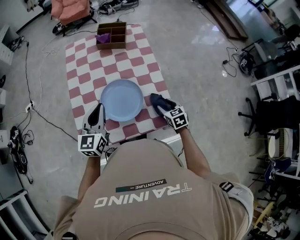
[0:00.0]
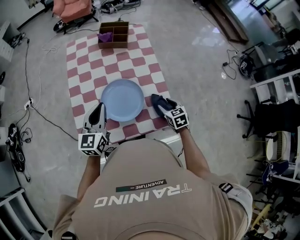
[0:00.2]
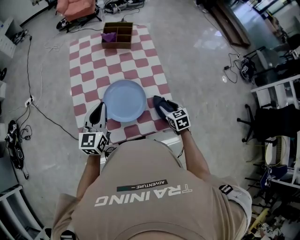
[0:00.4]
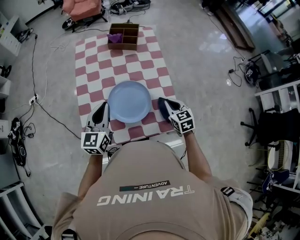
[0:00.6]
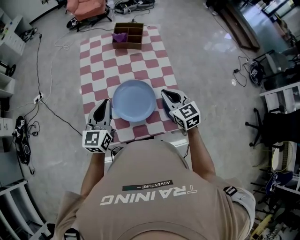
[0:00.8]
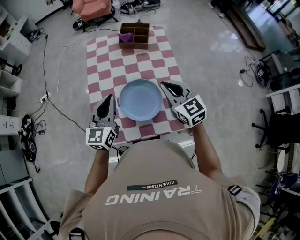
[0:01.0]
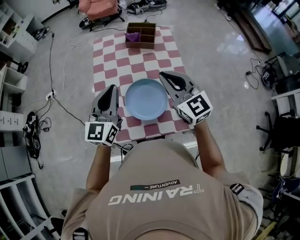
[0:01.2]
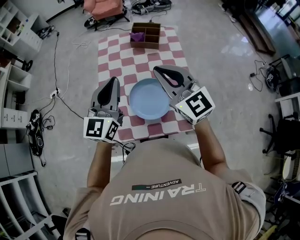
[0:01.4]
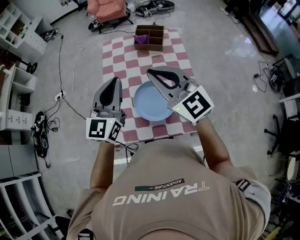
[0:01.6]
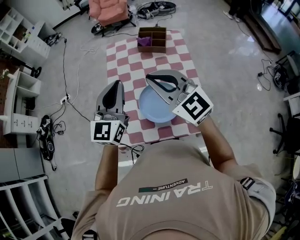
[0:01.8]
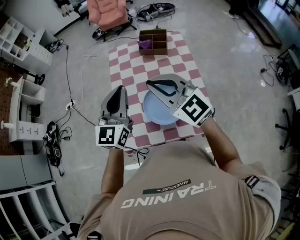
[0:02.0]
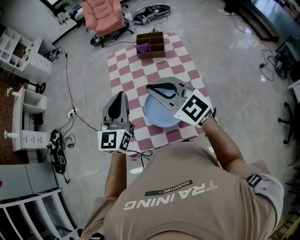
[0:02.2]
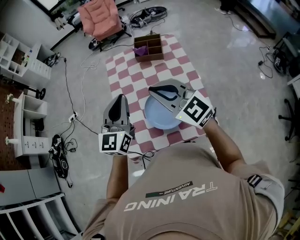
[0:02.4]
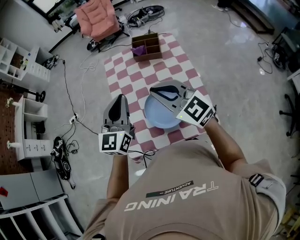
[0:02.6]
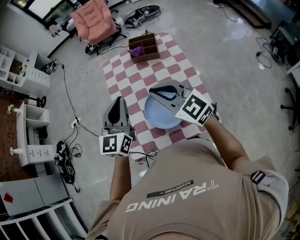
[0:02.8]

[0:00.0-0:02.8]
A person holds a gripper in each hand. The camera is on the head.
0:00.0 to 0:01.4: The right gripper is displaced upward and to the left by roughly 40 cm, tips its fingers upward by some 50 degrees, and closes its fingers. Meanwhile the left gripper shifts approximately 15 cm upward.
0:01.4 to 0:02.8: The right gripper moves some 5 cm.

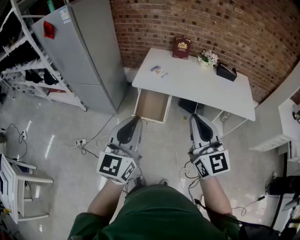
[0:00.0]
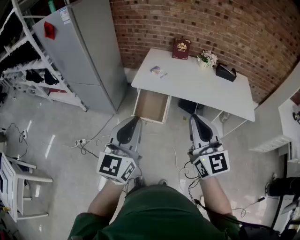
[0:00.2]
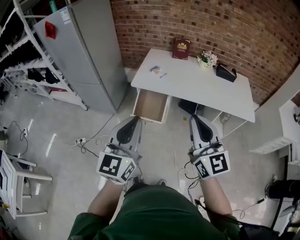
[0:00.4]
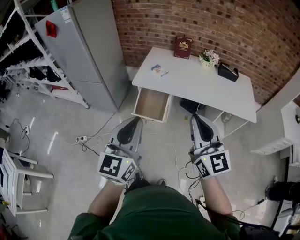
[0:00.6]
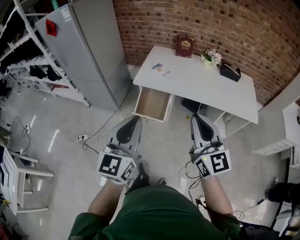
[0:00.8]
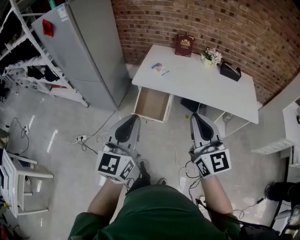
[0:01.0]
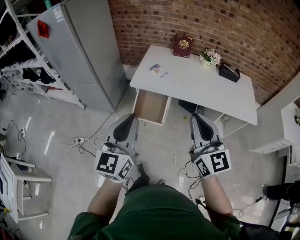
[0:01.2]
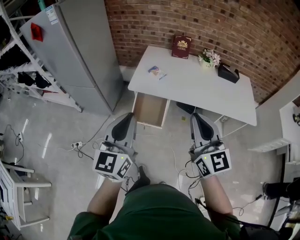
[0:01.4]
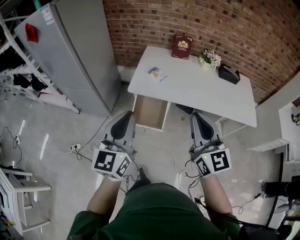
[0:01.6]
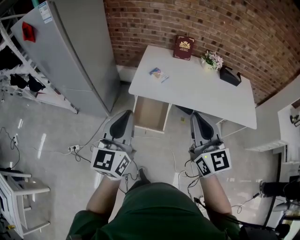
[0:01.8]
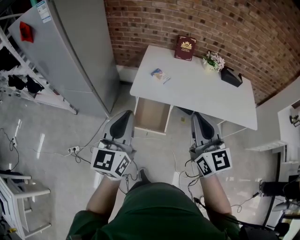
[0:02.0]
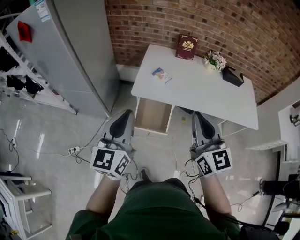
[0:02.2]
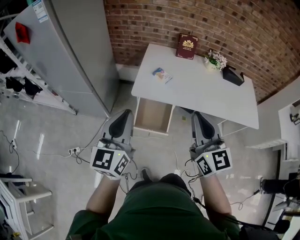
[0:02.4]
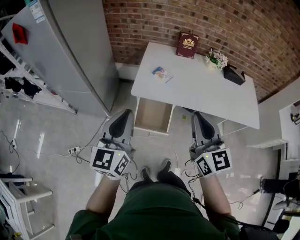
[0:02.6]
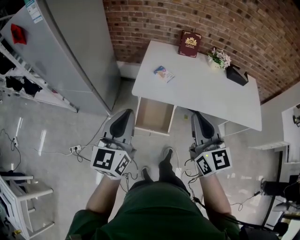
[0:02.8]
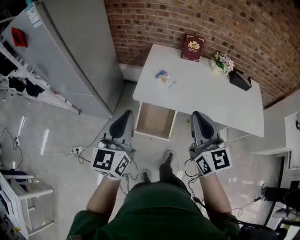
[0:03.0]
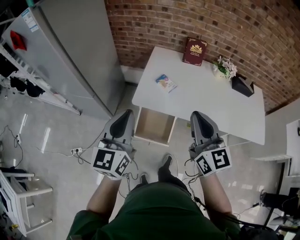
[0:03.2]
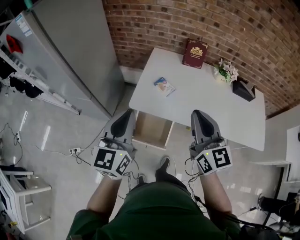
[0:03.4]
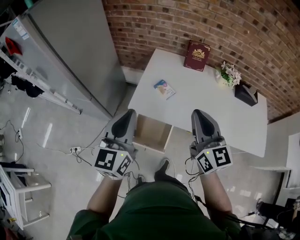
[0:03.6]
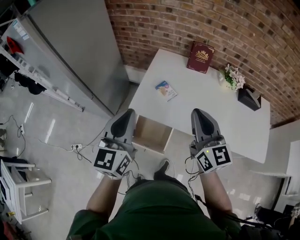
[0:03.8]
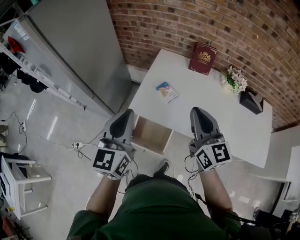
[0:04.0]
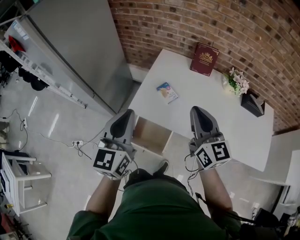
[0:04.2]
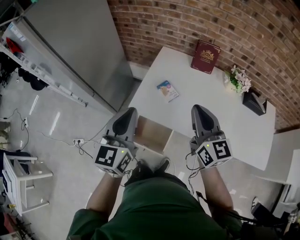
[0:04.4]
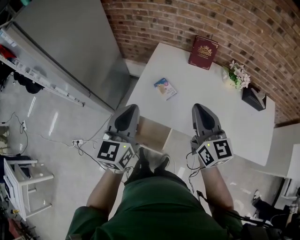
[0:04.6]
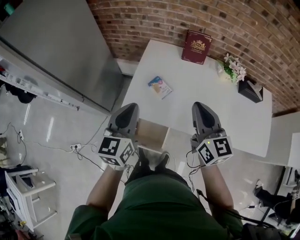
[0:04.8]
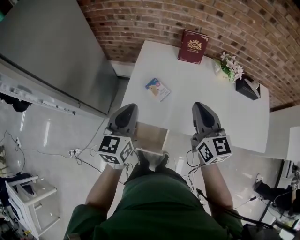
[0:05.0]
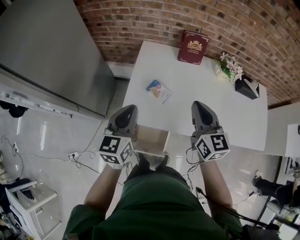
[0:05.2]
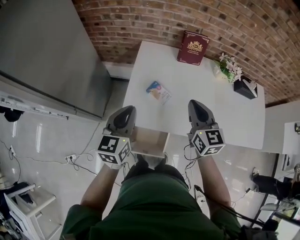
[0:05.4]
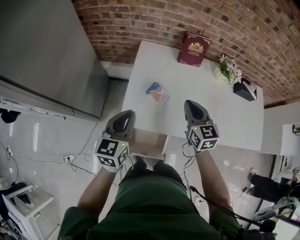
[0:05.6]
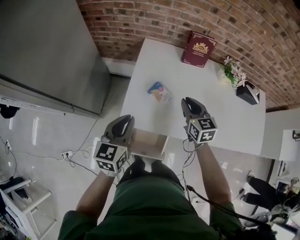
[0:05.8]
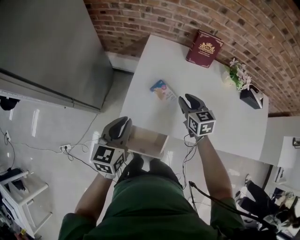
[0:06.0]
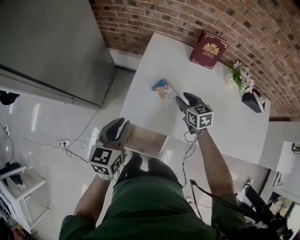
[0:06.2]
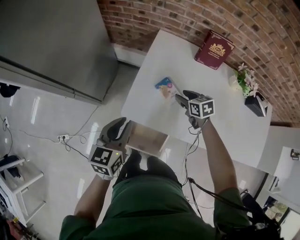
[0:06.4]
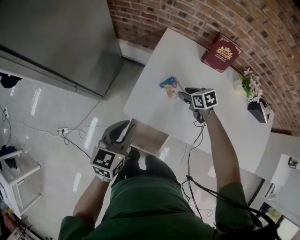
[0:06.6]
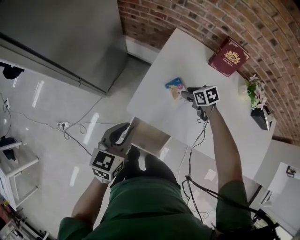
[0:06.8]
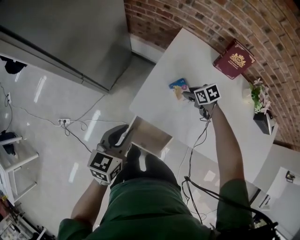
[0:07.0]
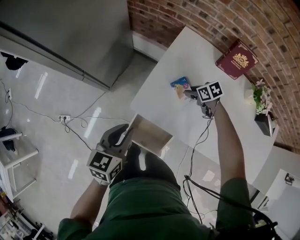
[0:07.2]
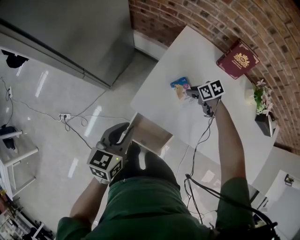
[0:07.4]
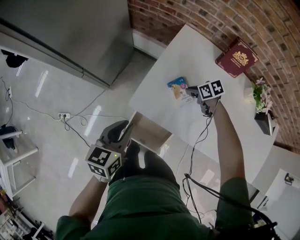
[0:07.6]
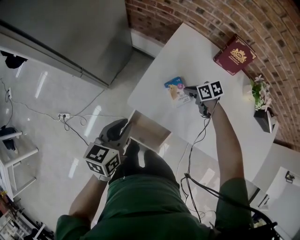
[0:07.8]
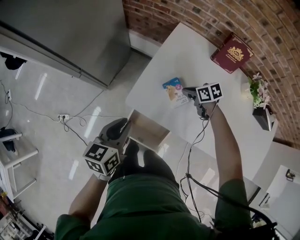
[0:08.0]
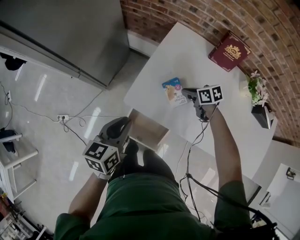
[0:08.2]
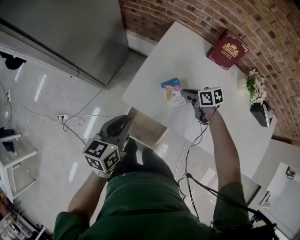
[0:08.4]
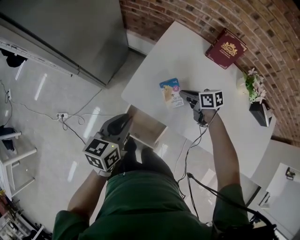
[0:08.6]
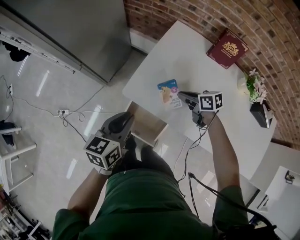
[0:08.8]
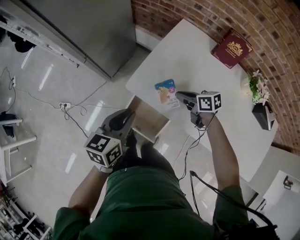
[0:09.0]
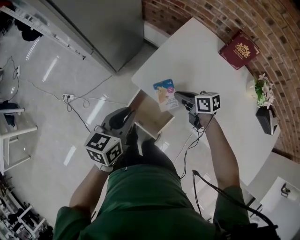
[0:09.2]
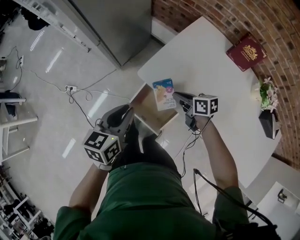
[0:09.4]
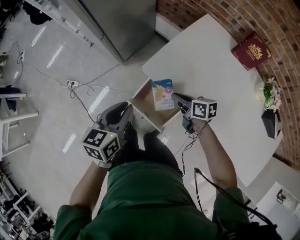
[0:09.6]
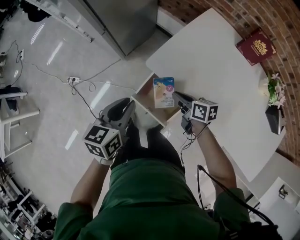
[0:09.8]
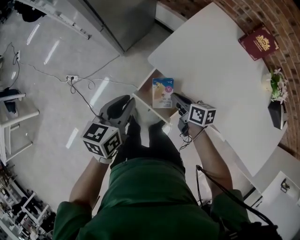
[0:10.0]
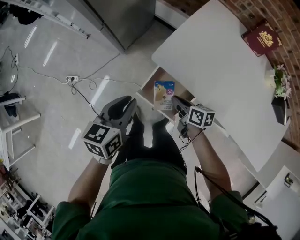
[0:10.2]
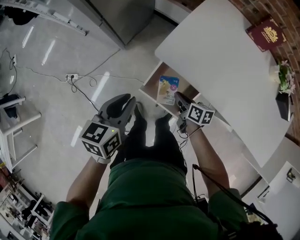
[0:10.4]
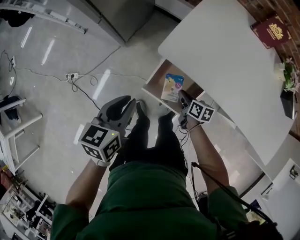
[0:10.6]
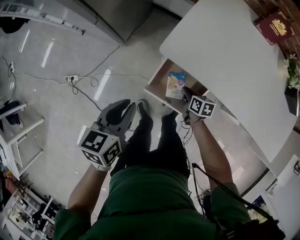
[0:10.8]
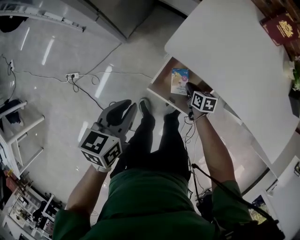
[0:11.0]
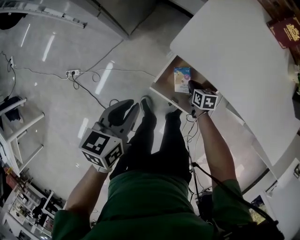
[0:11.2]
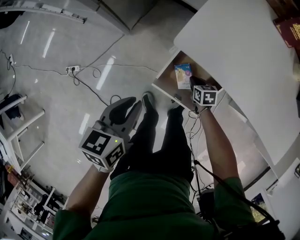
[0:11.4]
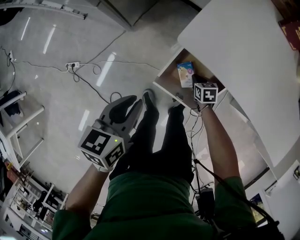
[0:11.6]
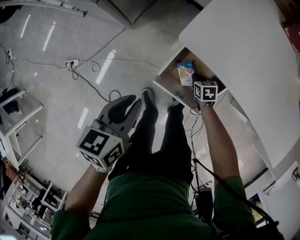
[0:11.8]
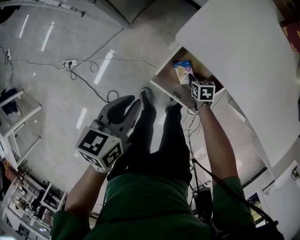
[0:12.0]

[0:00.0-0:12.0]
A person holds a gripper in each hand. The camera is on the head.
0:00.0 to 0:01.6: The two grippers go roughly 15 cm forward.
0:01.6 to 0:03.0: The right gripper travels forward by some 15 cm; the left gripper is displaced forward and to the left by approximately 15 cm.
0:03.0 to 0:04.4: The grippers both shift forward and to the right by approximately 20 cm.
0:04.4 to 0:06.0: The grippers both shift downward and forward by about 25 cm. The right gripper points its fingers about 30 degrees further downward, and opens, while the left gripper changes its angle by approximately 20 degrees.
0:06.0 to 0:07.6: The right gripper is displaced downward by about 15 cm, and swivels some 50 degrees, while the left gripper shifts by about 10 cm.
0:07.6 to 0:09.0: The left gripper moves backward, approximately 5 cm, while the right gripper shifts some 15 cm backward, upward and to the left, and changes its angle by some 20 degrees.
0:09.0 to 0:10.4: The right gripper is displaced to the left, downward and backward by approximately 20 cm, and rotates roughly 30 degrees, while the left gripper goes approximately 15 cm to the left and downward.
0:10.4 to 0:12.0: The right gripper travels downward by about 20 cm, changes its angle by some 40 degrees, and opens, while the left gripper is displaced downward by approximately 10 cm.

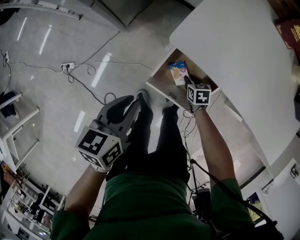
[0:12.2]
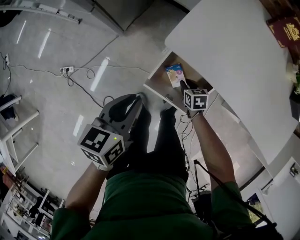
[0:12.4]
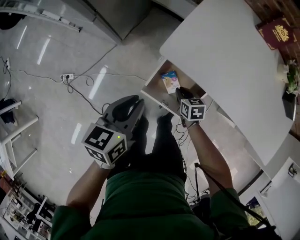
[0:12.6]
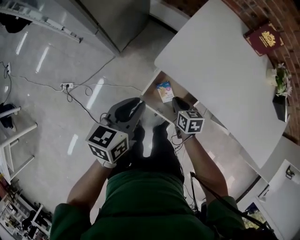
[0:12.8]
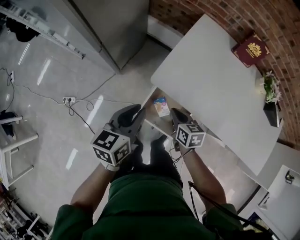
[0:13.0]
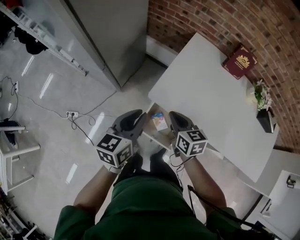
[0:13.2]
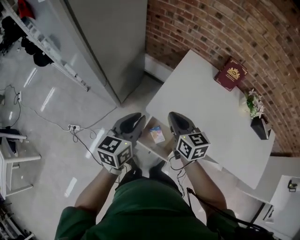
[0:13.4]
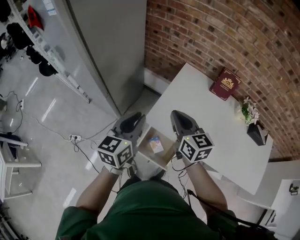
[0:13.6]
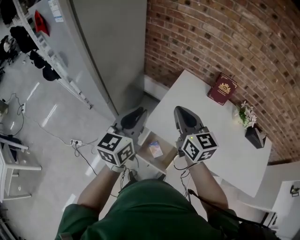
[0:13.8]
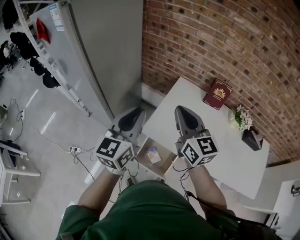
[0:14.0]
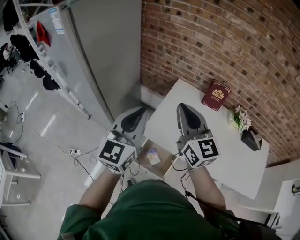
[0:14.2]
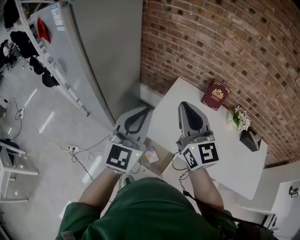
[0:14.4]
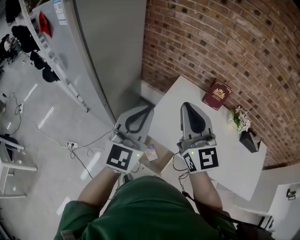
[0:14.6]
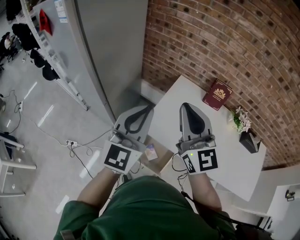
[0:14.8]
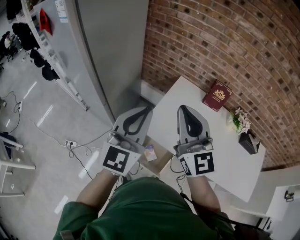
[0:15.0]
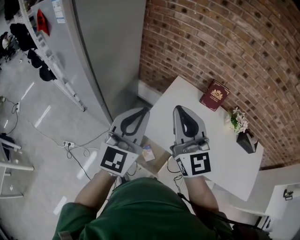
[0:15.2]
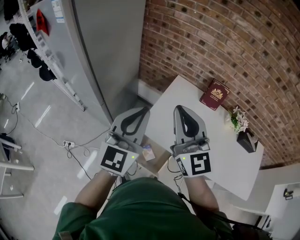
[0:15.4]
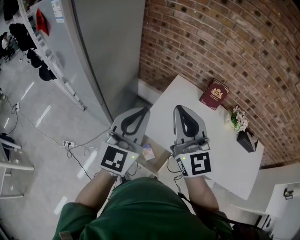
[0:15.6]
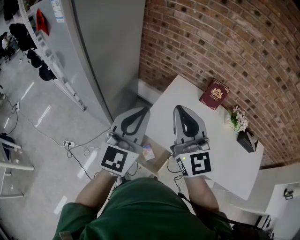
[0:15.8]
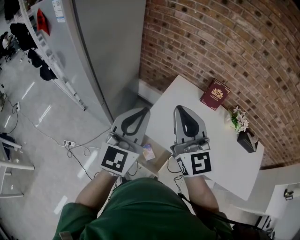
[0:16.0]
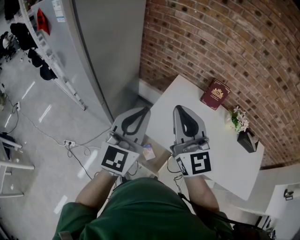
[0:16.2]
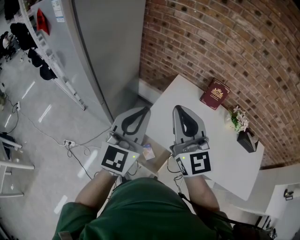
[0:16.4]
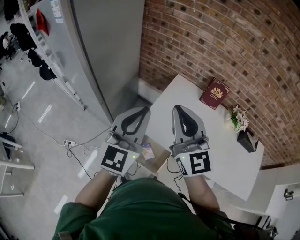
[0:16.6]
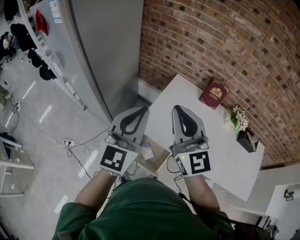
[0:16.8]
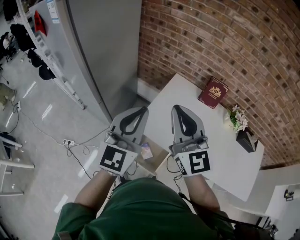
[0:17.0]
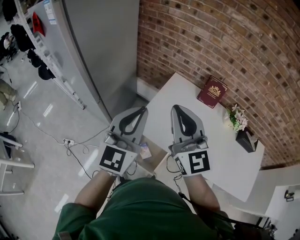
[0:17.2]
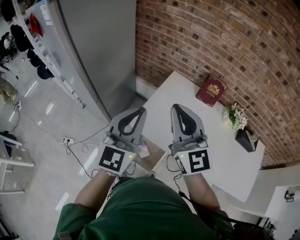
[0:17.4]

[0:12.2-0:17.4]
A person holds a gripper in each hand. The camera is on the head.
0:12.2 to 0:14.0: The left gripper shifts approximately 40 cm upward, and angles its fingers upward, by about 40 degrees; the right gripper moves upward, some 70 cm, points its fingers about 60 degrees further upward, and closes up.
0:14.0 to 0:15.6: The right gripper is displaced upward by roughly 5 cm, and swivels some 20 degrees; the left gripper moves about 5 cm.
0:15.6 to 0:17.4: The grippers both shift to the right by about 5 cm.

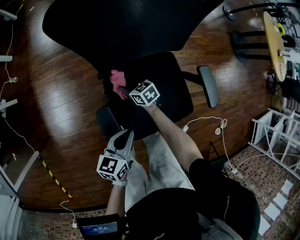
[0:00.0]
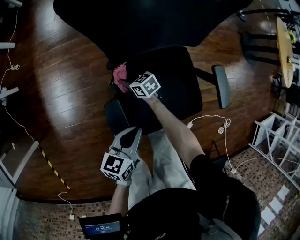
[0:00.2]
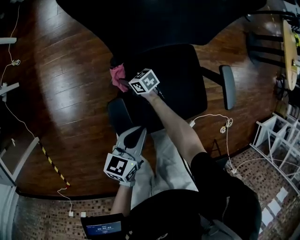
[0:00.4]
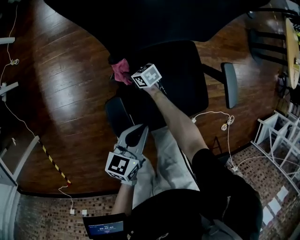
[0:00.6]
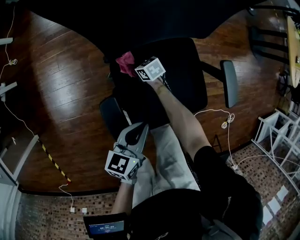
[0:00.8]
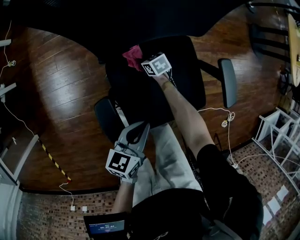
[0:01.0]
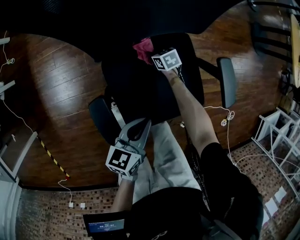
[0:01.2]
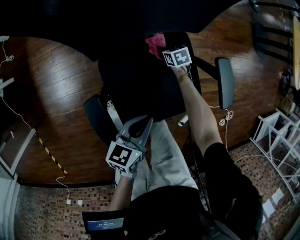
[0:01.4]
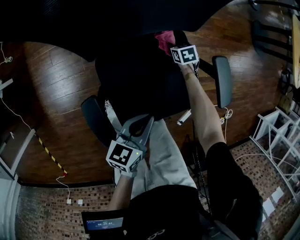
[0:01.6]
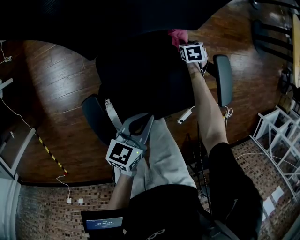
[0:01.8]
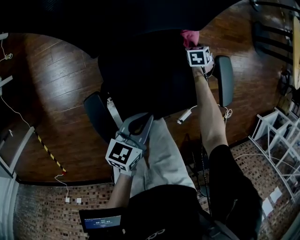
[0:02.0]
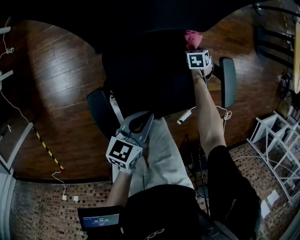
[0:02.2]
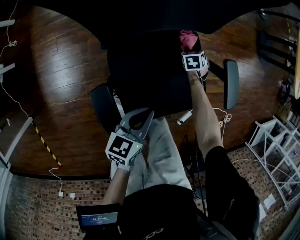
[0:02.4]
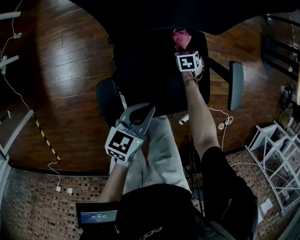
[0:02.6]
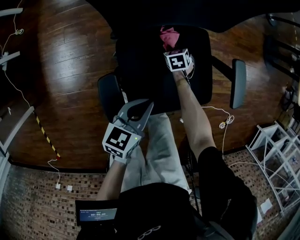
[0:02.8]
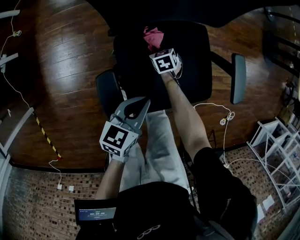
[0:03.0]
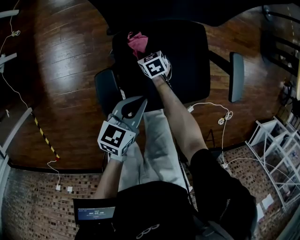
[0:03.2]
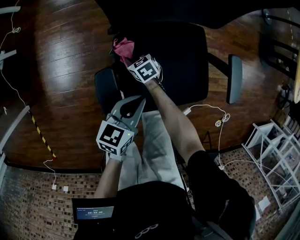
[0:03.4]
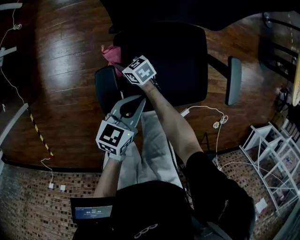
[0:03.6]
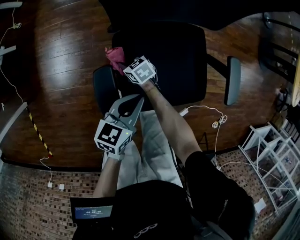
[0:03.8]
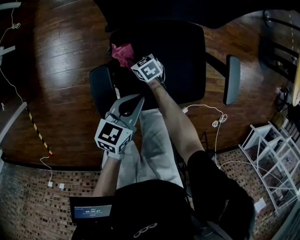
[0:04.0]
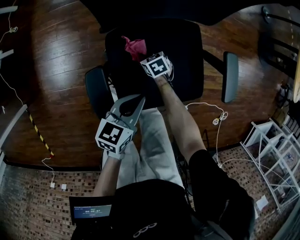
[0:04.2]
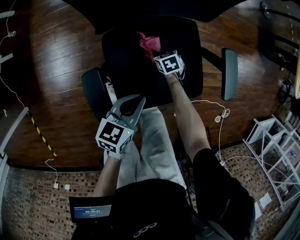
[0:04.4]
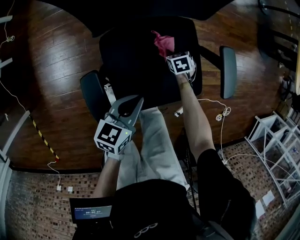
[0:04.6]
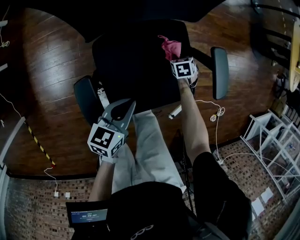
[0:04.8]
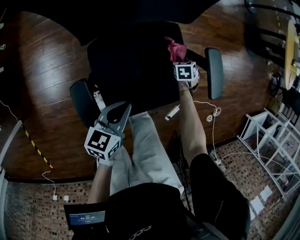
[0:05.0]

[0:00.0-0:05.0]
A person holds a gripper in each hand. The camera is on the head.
0:00.0 to 0:01.6: The right gripper moves some 30 cm, and turns by roughly 30 degrees. The left gripper shifts by some 10 cm.
0:01.6 to 0:03.4: The left gripper moves roughly 10 cm; the right gripper changes place by some 30 cm, and swivels roughly 30 degrees.
0:03.4 to 0:05.0: The right gripper shifts by roughly 40 cm, and rotates approximately 50 degrees.
